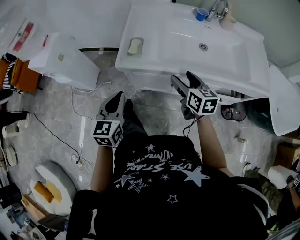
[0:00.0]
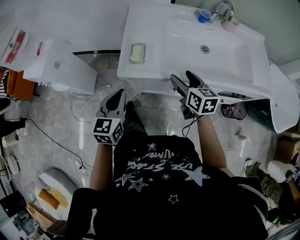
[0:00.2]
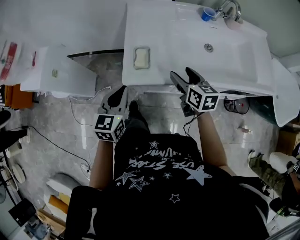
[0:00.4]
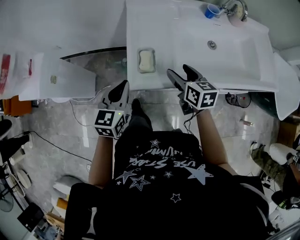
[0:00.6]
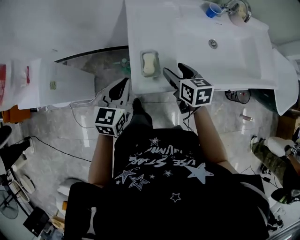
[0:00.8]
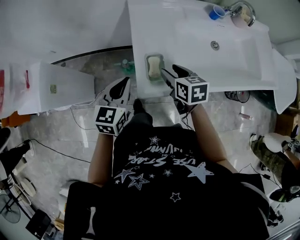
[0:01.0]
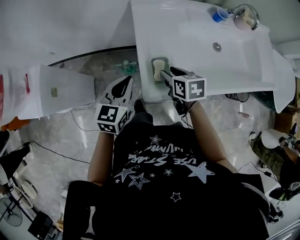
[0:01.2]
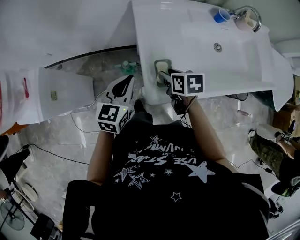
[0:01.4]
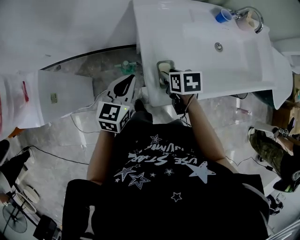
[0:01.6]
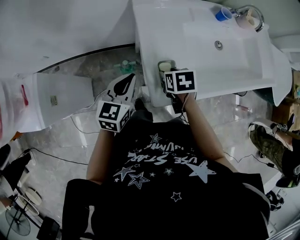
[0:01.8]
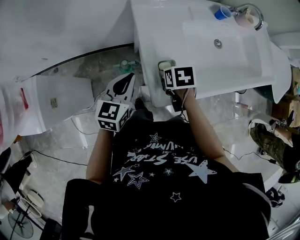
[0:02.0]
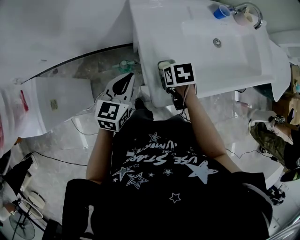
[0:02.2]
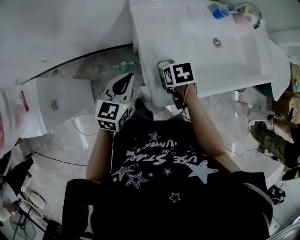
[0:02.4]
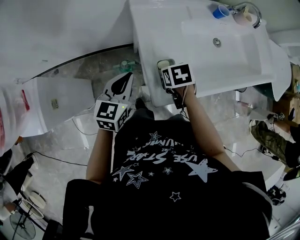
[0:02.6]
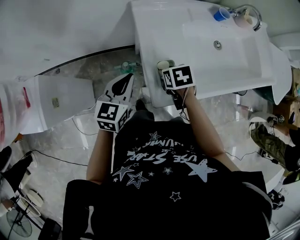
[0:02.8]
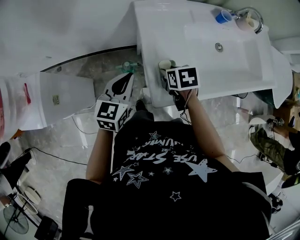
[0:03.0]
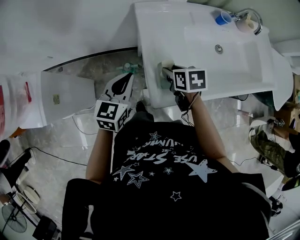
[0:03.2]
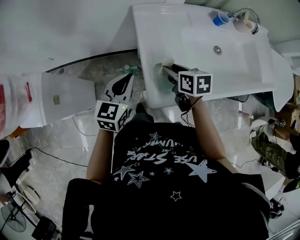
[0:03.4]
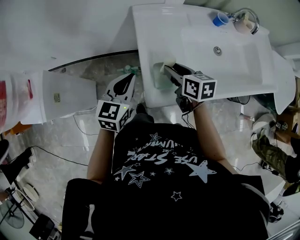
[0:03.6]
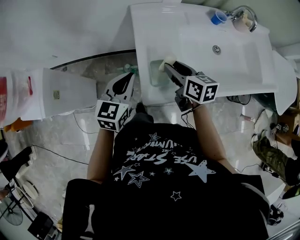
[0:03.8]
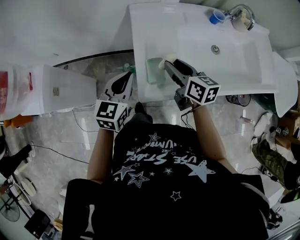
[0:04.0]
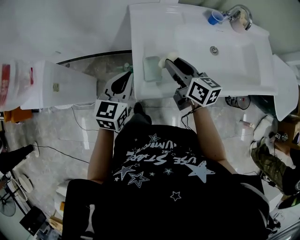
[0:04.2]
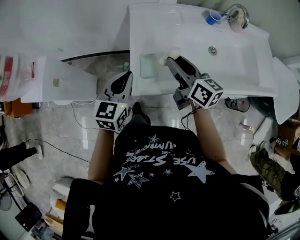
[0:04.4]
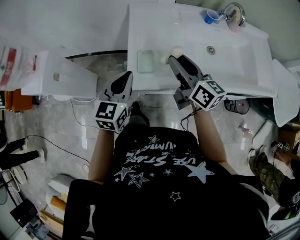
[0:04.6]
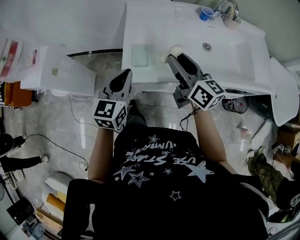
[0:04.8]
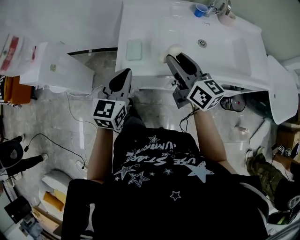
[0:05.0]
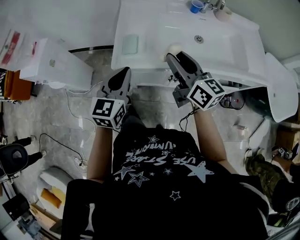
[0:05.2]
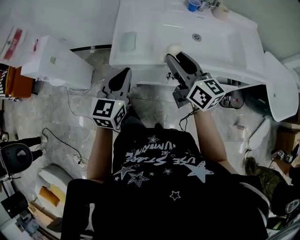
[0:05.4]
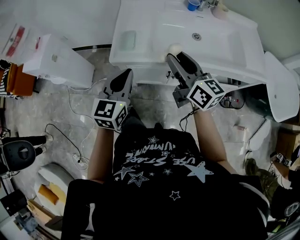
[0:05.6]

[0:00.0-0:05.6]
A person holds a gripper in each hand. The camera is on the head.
0:00.0 to 0:01.4: The right gripper shifts about 30 cm to the left and forward, points its fingers some 30 degrees further downward, and closes its fingers, while the left gripper goes roughly 30 cm forward and to the left, and changes its angle by about 20 degrees.
0:01.4 to 0:02.8: The grippers make only small movements.
0:02.8 to 0:04.2: The right gripper heads upward and to the right, covering roughly 15 cm, and tilts its fingers some 50 degrees upward. The left gripper goes about 10 cm to the right and backward.
0:04.2 to 0:05.6: Both grippers travel together backward and to the right, approximately 25 cm.

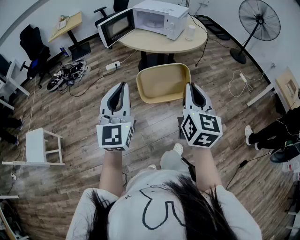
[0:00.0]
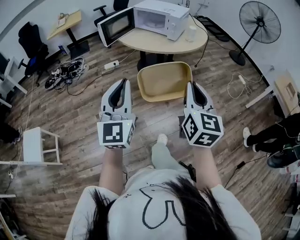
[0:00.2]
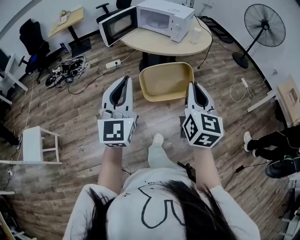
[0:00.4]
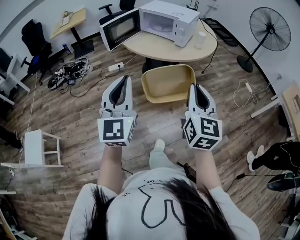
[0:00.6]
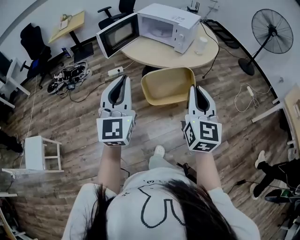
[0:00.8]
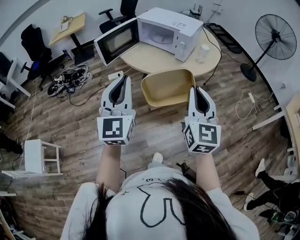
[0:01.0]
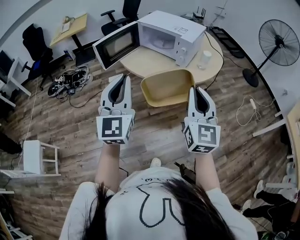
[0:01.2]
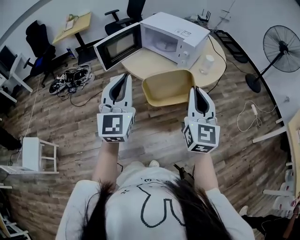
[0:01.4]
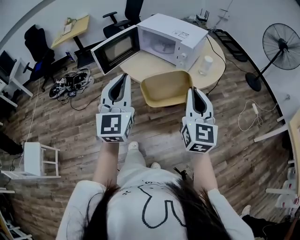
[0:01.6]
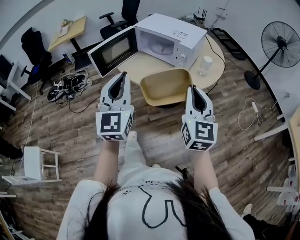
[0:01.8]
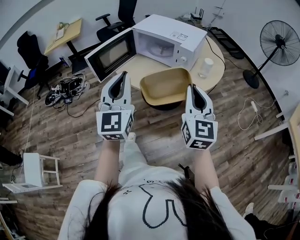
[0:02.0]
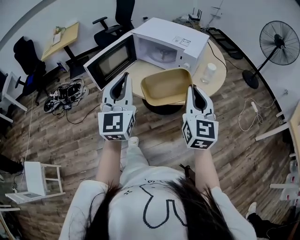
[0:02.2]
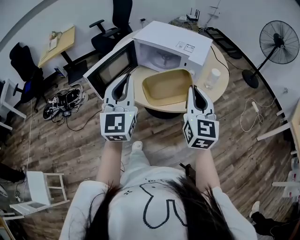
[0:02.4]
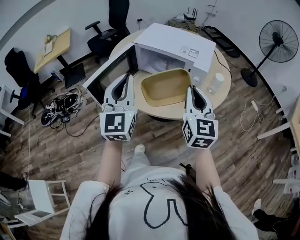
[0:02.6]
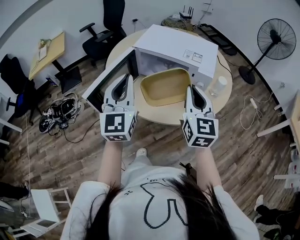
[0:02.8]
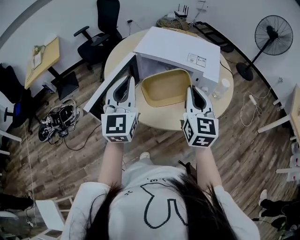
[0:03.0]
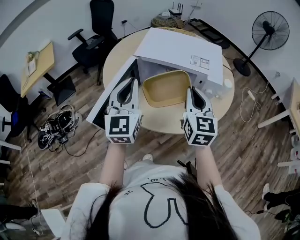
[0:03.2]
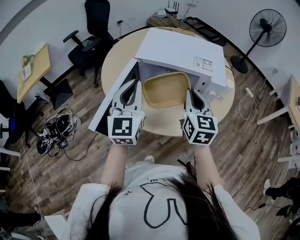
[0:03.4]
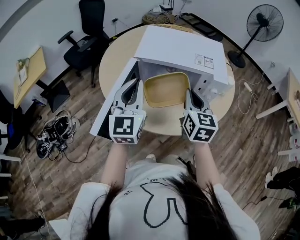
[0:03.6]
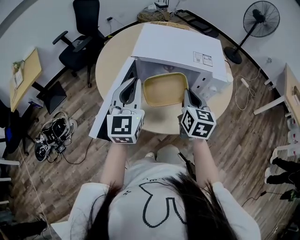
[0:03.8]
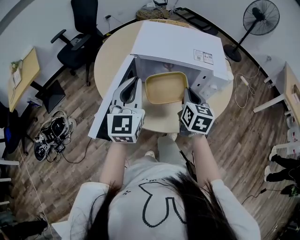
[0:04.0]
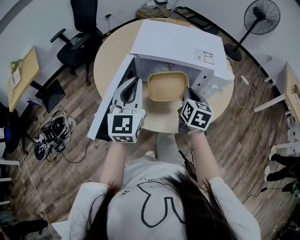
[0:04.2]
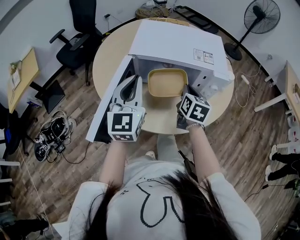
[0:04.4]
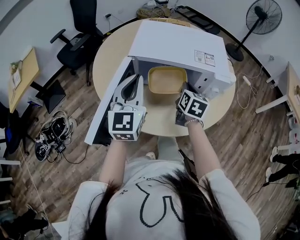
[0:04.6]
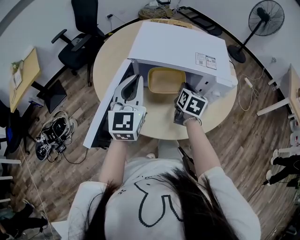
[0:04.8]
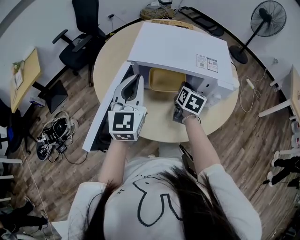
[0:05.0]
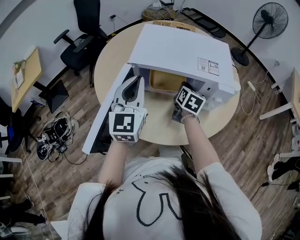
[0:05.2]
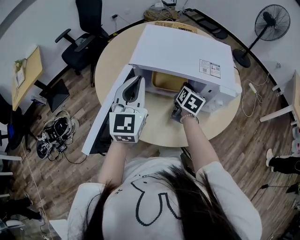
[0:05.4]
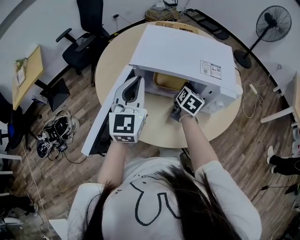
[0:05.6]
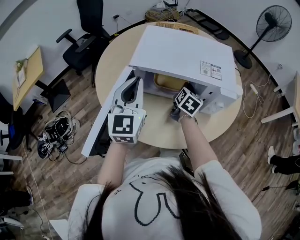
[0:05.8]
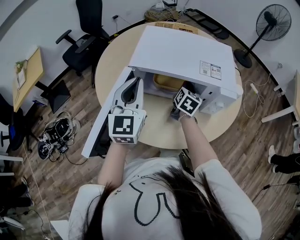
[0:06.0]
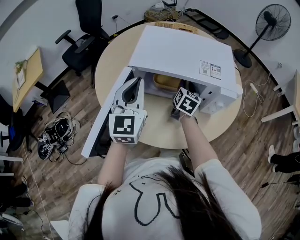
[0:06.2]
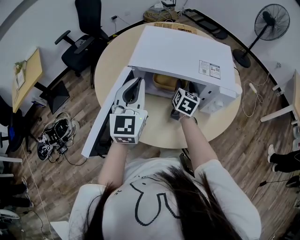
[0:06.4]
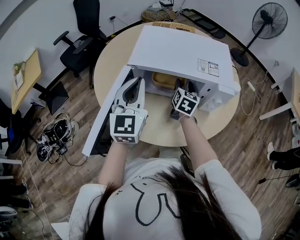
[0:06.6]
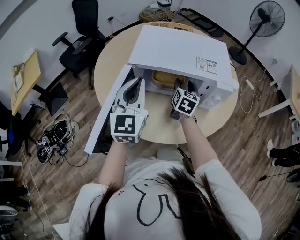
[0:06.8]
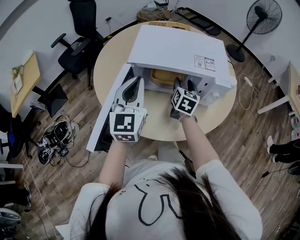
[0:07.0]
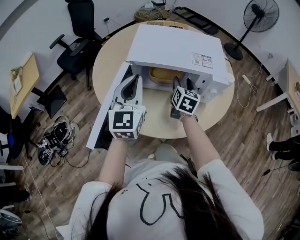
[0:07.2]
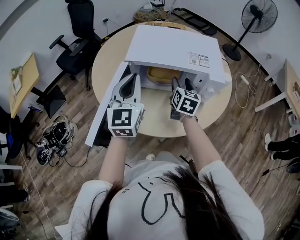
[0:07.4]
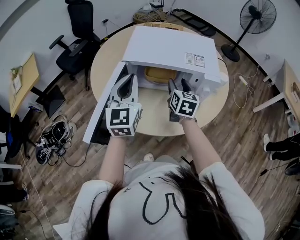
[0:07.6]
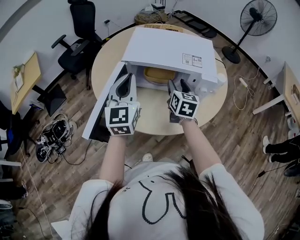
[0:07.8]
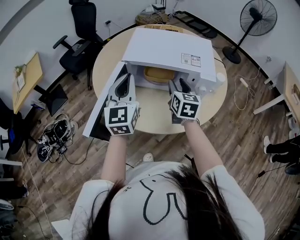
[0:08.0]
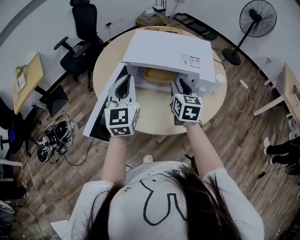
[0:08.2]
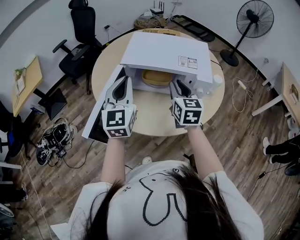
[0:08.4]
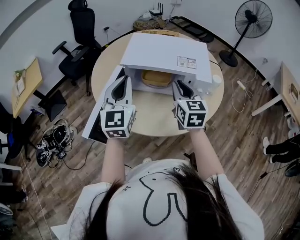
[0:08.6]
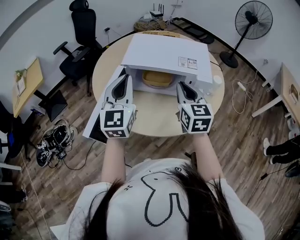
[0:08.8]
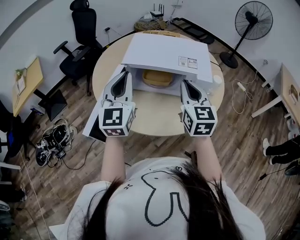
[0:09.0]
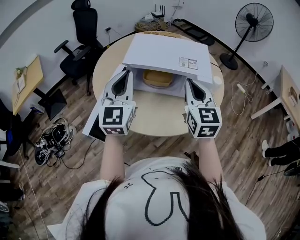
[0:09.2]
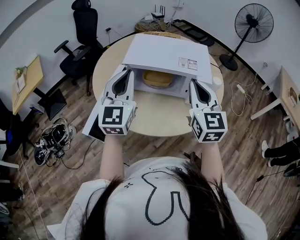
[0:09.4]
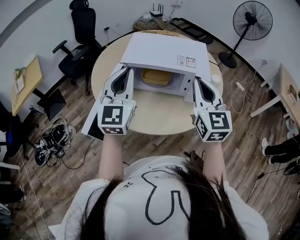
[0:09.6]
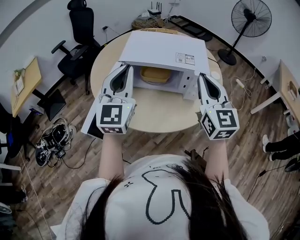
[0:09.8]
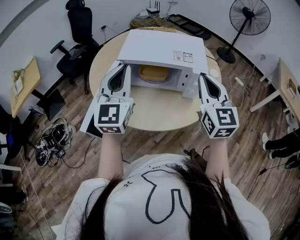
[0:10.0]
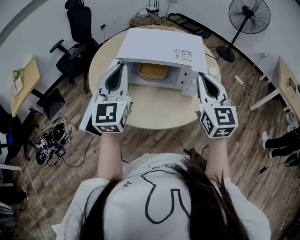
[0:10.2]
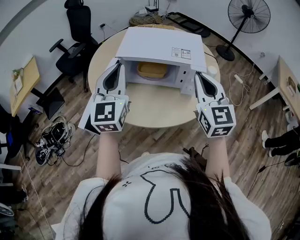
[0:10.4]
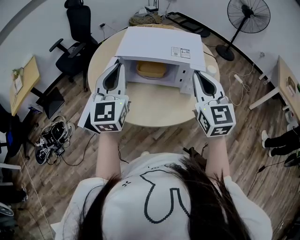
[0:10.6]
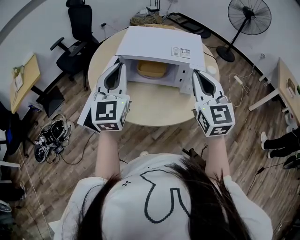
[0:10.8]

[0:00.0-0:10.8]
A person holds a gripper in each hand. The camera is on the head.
0:00.0 to 0:01.6: The two grippers go roughly 35 cm forward.
0:01.6 to 0:03.0: The two grippers go some 35 cm forward and to the left.
0:03.0 to 0:04.6: The left gripper moves forward and downward, roughly 15 cm, while the right gripper travels downward and forward by approximately 20 cm, and swivels some 40 degrees.
0:04.6 to 0:06.2: The right gripper shifts about 10 cm forward and downward, and opens up.
0:06.2 to 0:07.8: The right gripper moves backward and upward, roughly 15 cm, and opens. Meanwhile the left gripper shifts by approximately 5 cm.
0:07.8 to 0:09.2: The left gripper heads upward, covering some 5 cm. Meanwhile the right gripper travels upward and backward by roughly 15 cm, rotates roughly 30 degrees, and closes.
0:09.2 to 0:10.8: The right gripper ends up approximately 5 cm from where it was.

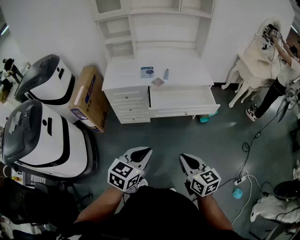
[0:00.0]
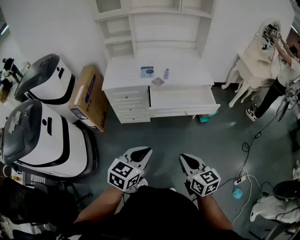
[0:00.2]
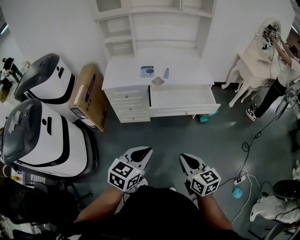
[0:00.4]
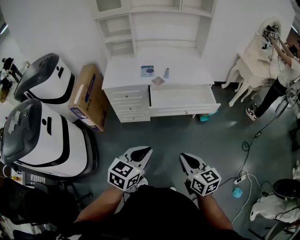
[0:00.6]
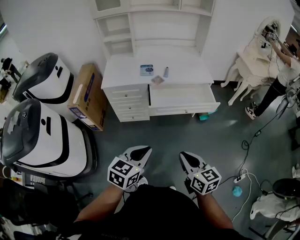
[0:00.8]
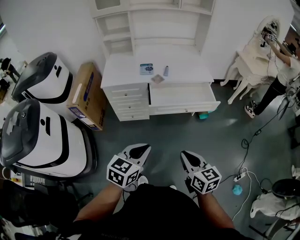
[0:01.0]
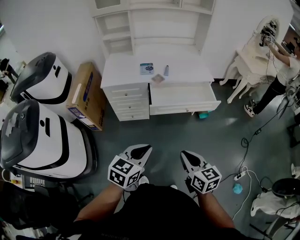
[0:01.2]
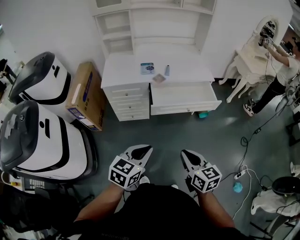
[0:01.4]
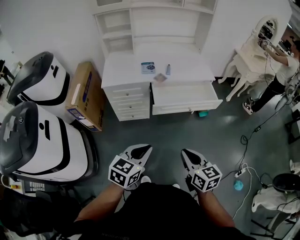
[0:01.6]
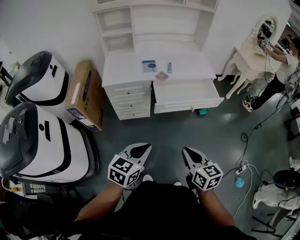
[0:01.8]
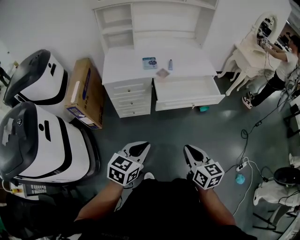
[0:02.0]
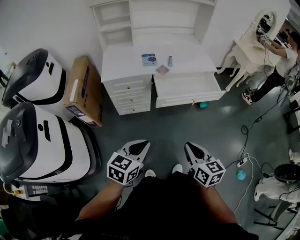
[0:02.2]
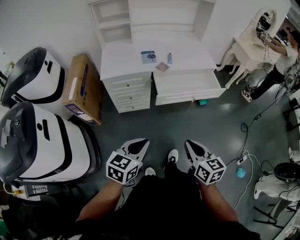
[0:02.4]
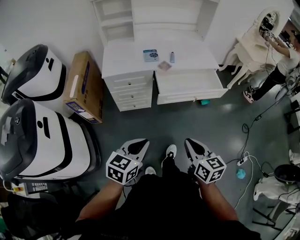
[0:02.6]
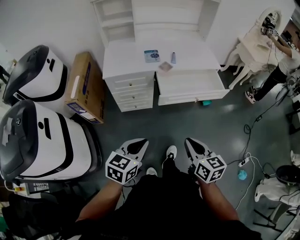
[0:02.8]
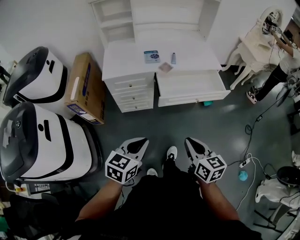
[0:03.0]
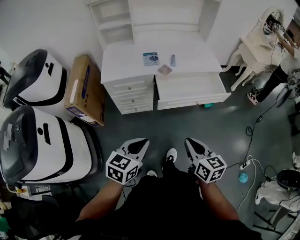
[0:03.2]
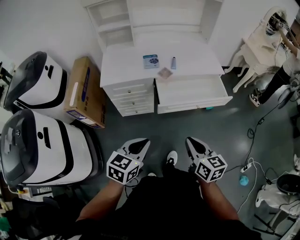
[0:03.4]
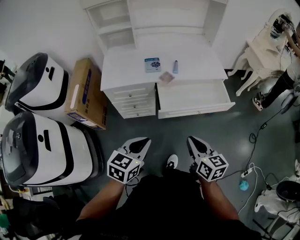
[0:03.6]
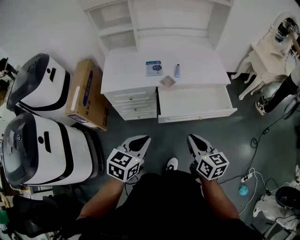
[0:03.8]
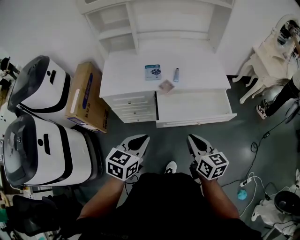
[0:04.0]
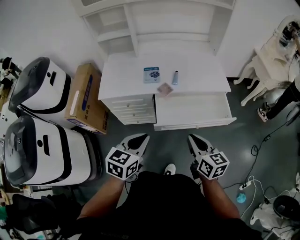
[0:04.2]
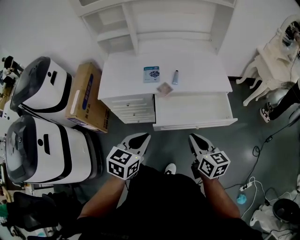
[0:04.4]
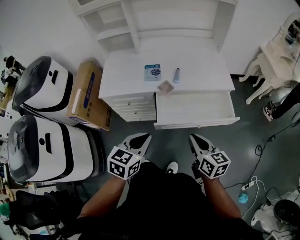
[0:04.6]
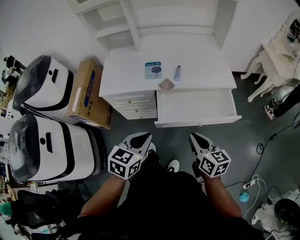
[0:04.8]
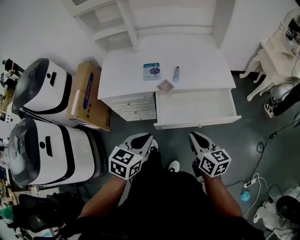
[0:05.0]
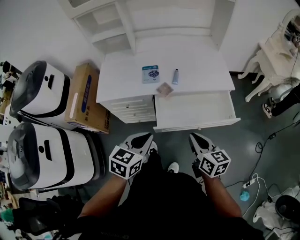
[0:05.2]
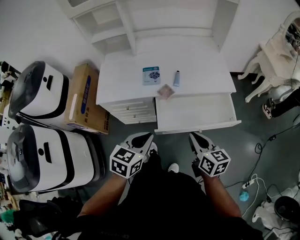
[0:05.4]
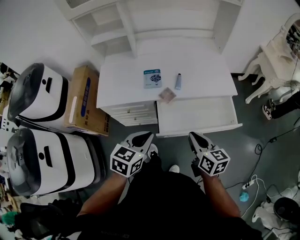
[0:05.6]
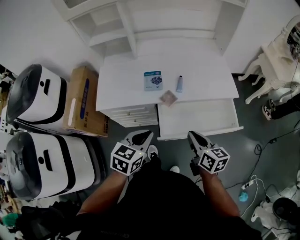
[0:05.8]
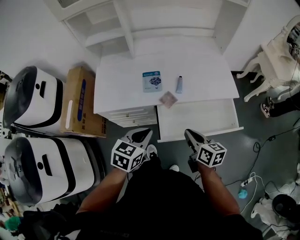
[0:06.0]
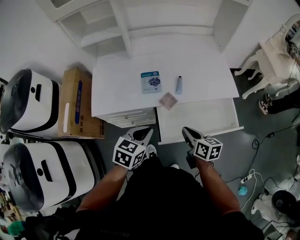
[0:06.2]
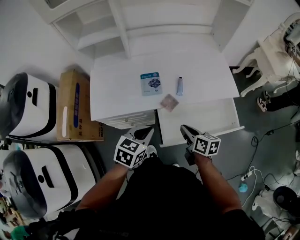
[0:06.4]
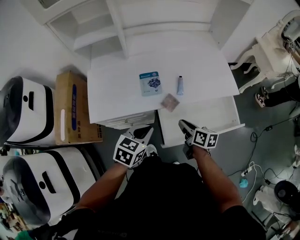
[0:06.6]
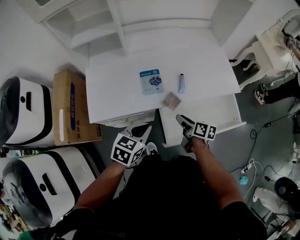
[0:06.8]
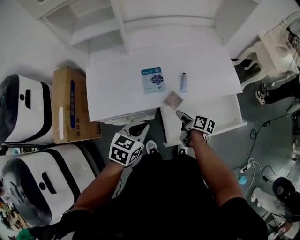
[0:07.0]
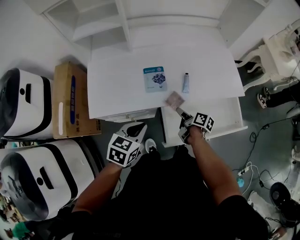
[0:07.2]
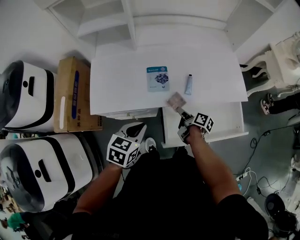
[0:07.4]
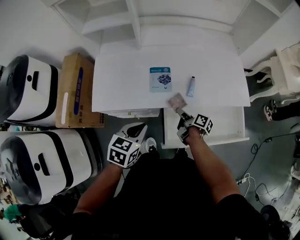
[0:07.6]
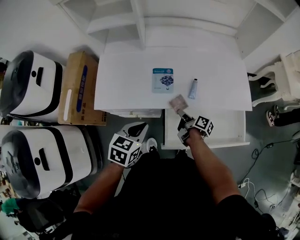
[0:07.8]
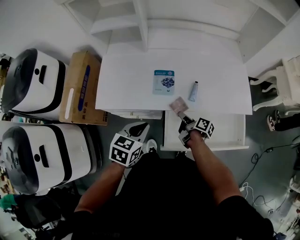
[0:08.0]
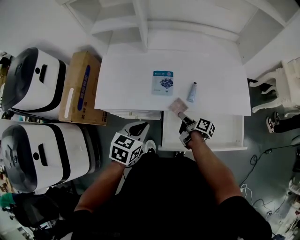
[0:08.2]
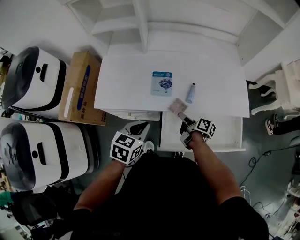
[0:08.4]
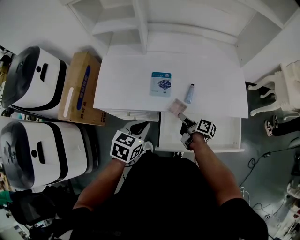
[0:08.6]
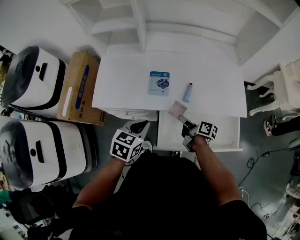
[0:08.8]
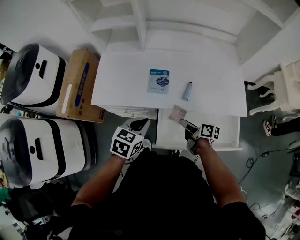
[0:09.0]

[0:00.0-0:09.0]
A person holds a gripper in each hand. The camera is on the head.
0:00.0 to 0:01.6: Both grippers move to the left, roughly 5 cm.
0:01.6 to 0:03.0: The left gripper goes some 5 cm to the left. Meanwhile the right gripper moves roughly 5 cm.
0:03.0 to 0:04.4: Both grippers move forward, about 20 cm.
0:04.4 to 0:06.0: The right gripper travels forward and downward by roughly 15 cm. Meanwhile the left gripper moves forward, approximately 15 cm.
0:06.0 to 0:07.6: The right gripper moves downward and forward, roughly 25 cm, twists approximately 40 degrees clockwise, seen from behind, and opens up; the left gripper shifts about 10 cm forward, to the left and downward.
0:07.6 to 0:09.0: The right gripper changes place by some 5 cm, and changes its angle by about 30 degrees.
